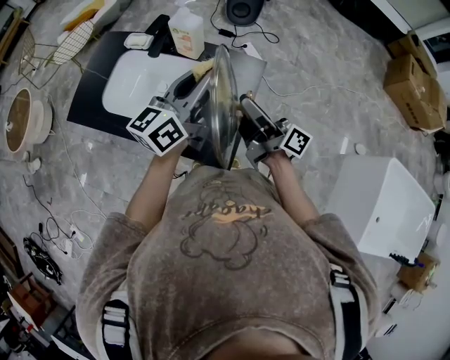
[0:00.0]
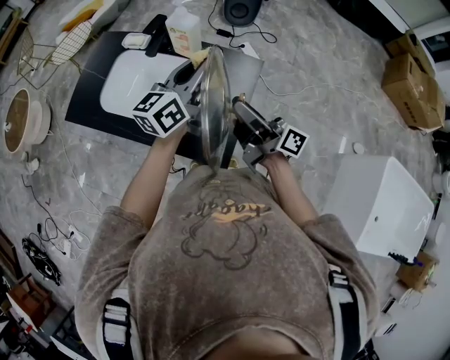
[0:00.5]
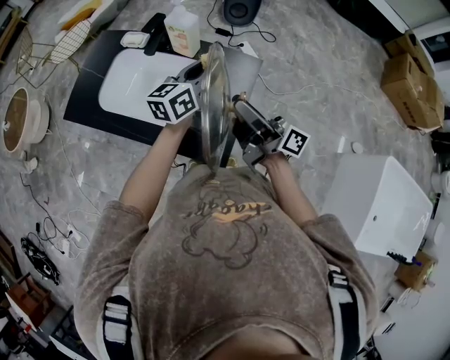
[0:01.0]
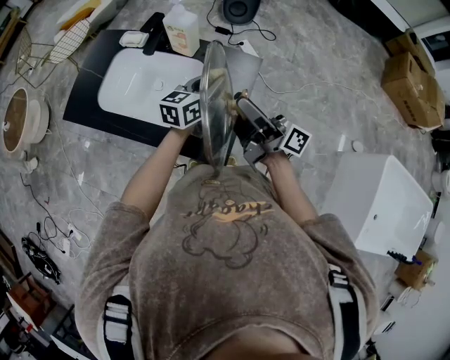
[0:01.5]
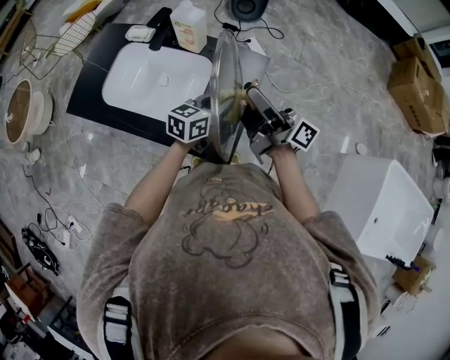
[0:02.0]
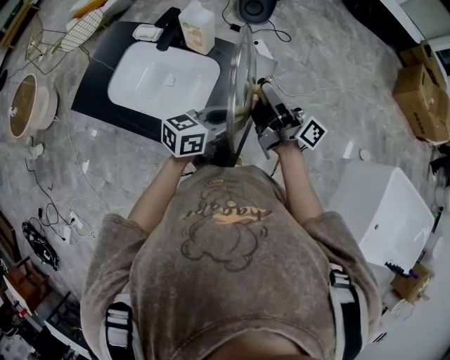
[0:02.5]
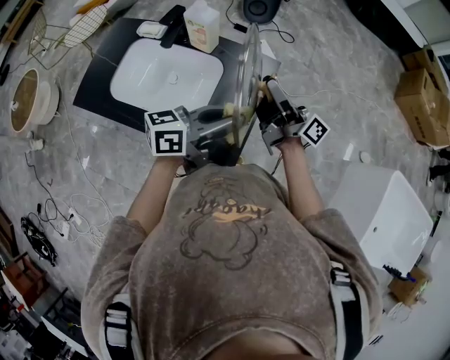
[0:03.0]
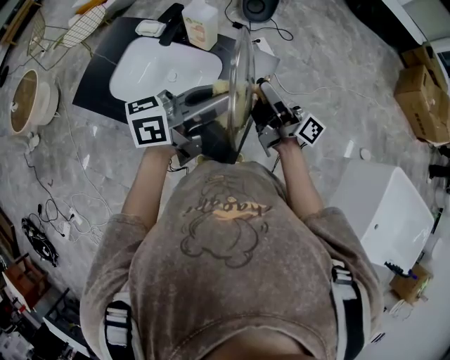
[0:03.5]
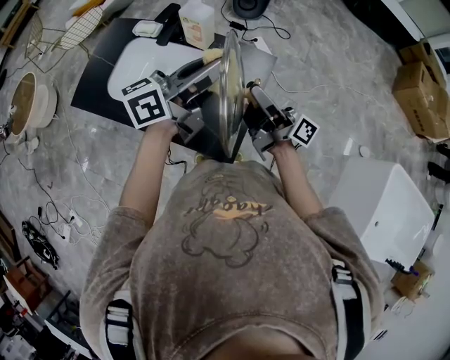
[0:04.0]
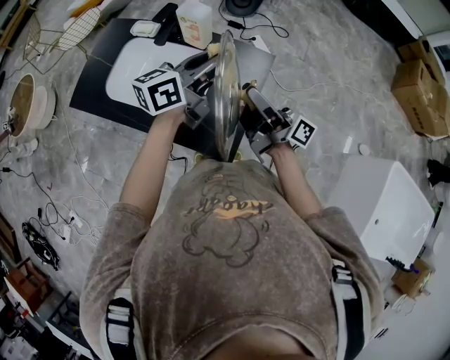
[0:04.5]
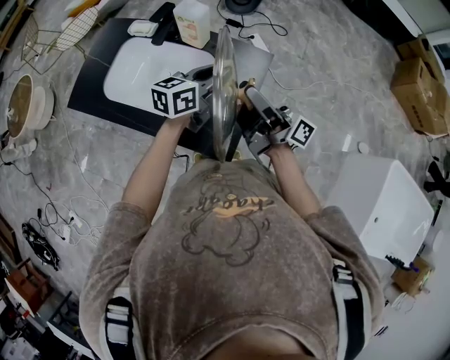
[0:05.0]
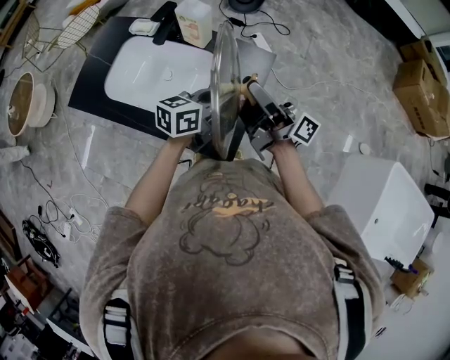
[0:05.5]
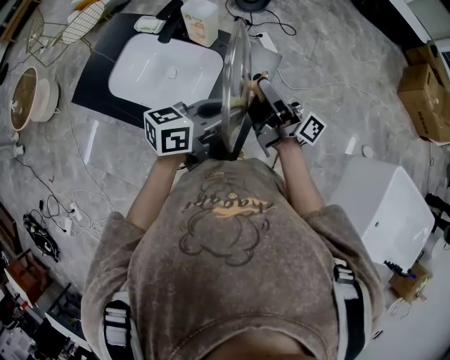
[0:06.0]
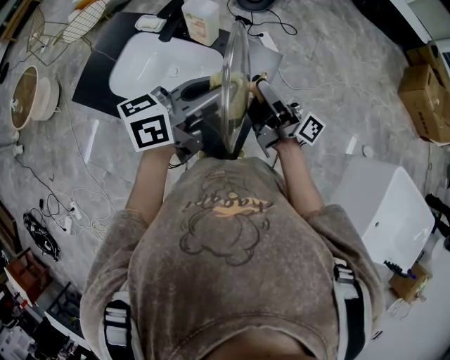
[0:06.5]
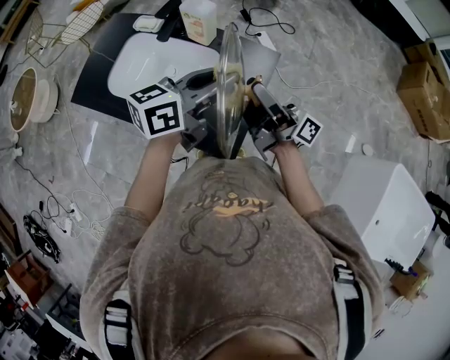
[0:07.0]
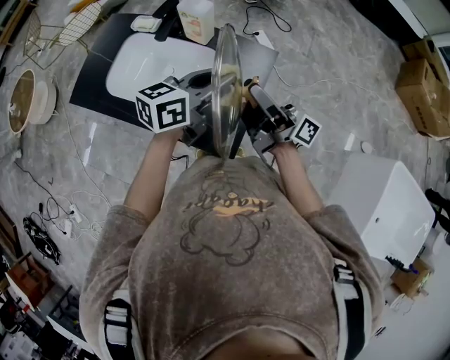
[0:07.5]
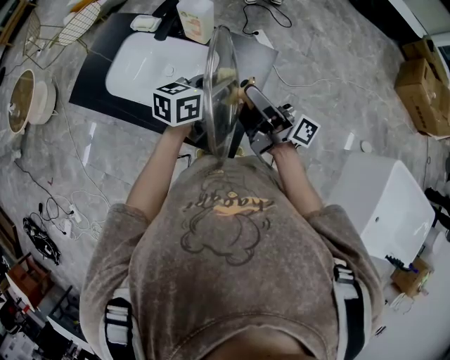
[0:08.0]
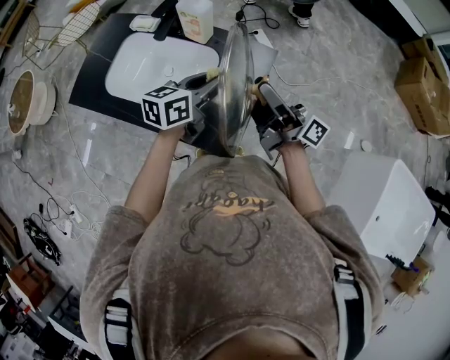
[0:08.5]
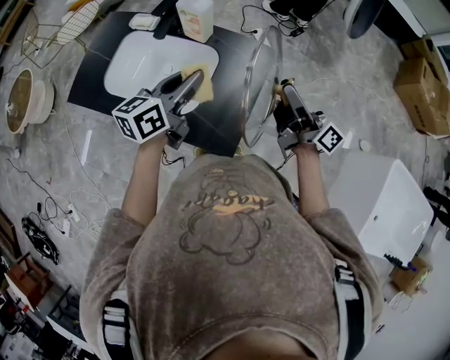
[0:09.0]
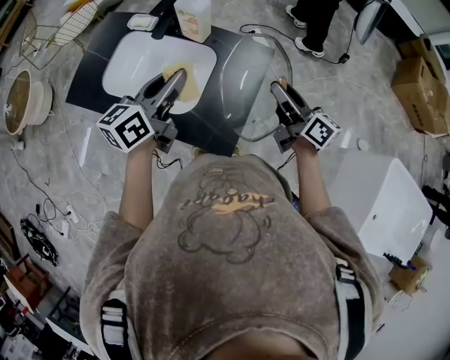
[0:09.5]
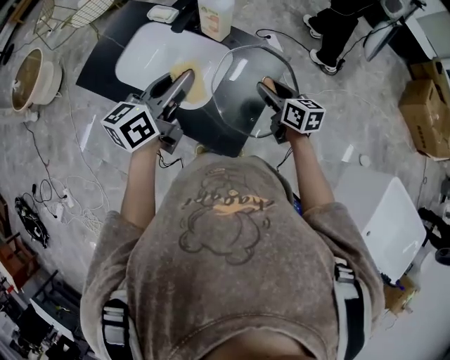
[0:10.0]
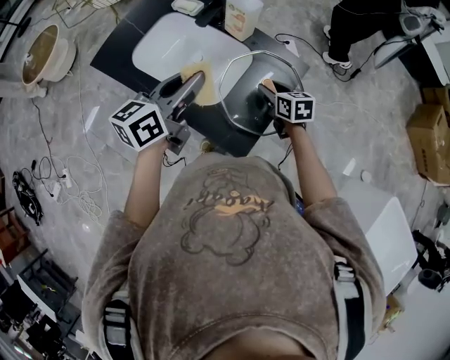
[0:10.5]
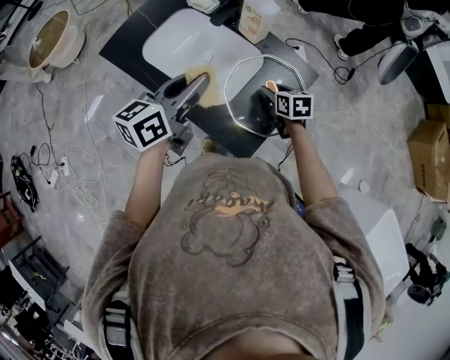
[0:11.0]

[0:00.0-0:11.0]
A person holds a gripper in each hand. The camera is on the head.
0.0 to 2.0 s: The left gripper travels downward by roughly 20 cm, and turns by roughly 30 degrees.
2.0 to 3.5 s: The left gripper heads upward, covering about 20 cm, and turns by approximately 30 degrees.
3.5 to 5.5 s: The left gripper goes some 15 cm downward, and rotates some 20 degrees.
5.5 to 7.5 s: The left gripper moves upward, some 10 cm.
7.5 to 9.0 s: The left gripper heads to the left, covering roughly 5 cm. Meanwhile the right gripper shifts approximately 10 cm to the right.
9.0 to 11.0 s: The left gripper travels to the left by approximately 10 cm, while the right gripper is displaced downward, to the left and forward by approximately 25 cm, and tips its fingers downward by roughly 60 degrees.

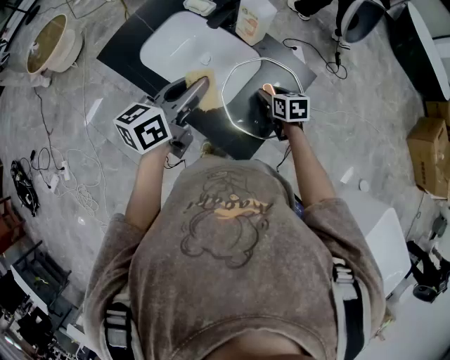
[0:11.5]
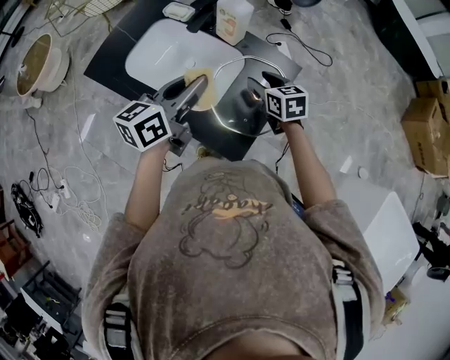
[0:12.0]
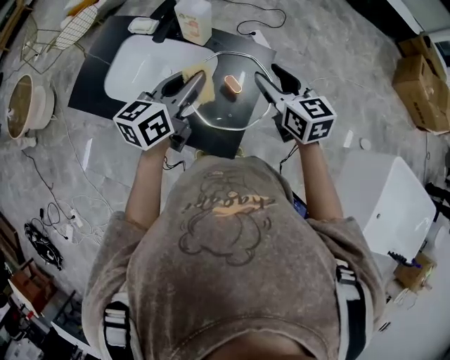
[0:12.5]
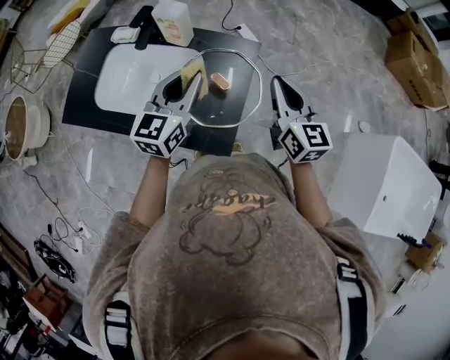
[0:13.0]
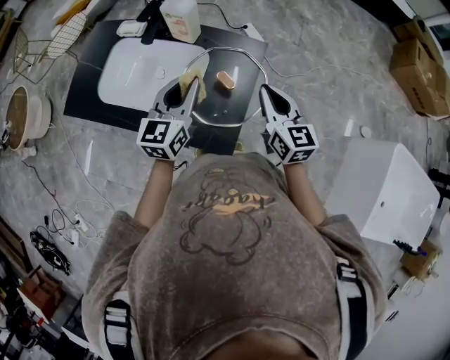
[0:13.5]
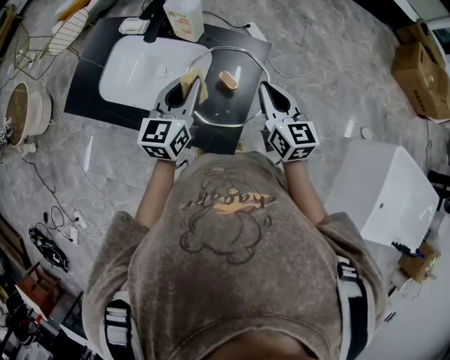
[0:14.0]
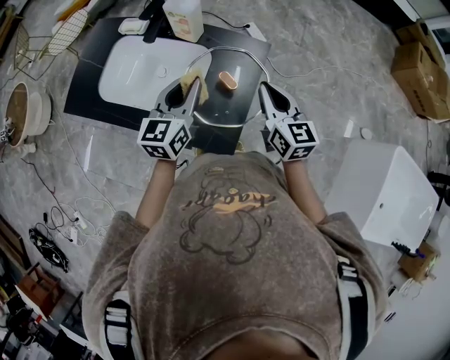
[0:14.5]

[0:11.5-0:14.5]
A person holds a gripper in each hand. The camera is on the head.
11.5 to 13.0 s: The right gripper heads upward and to the right, covering roughly 25 cm, points its fingers roughly 40 degrees further upward, and closes its fingers. Meanwhile the left gripper travels to the right by roughly 15 cm, and changes its angle by about 30 degrees.
13.0 to 14.5 s: The left gripper changes place by about 5 cm, while the right gripper moves downward, some 5 cm.

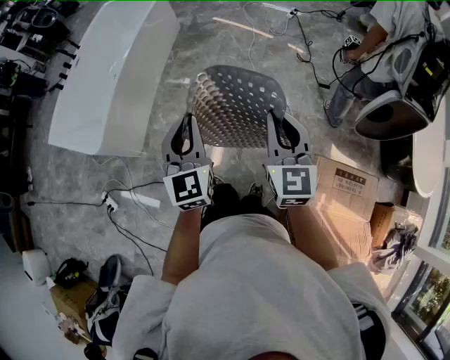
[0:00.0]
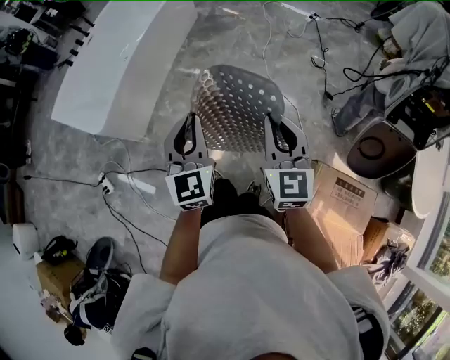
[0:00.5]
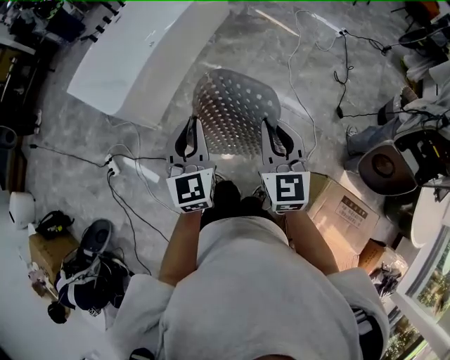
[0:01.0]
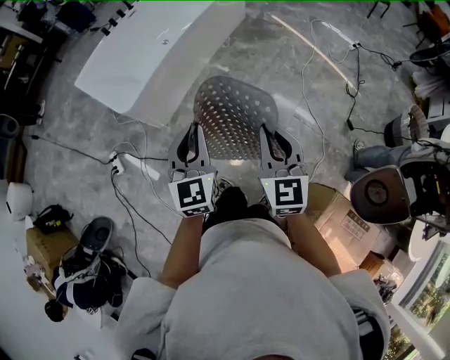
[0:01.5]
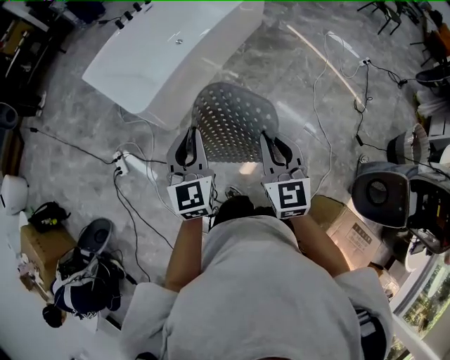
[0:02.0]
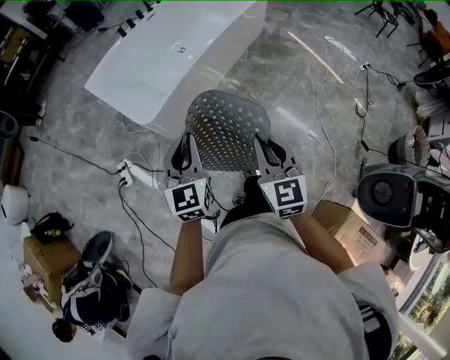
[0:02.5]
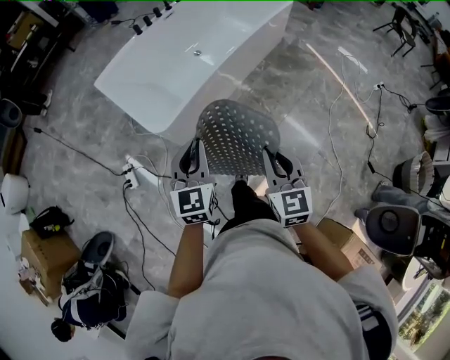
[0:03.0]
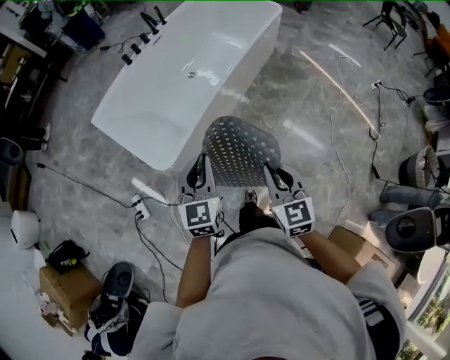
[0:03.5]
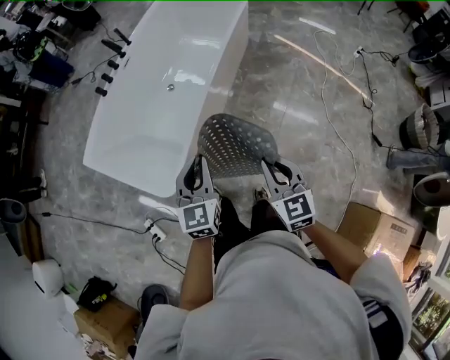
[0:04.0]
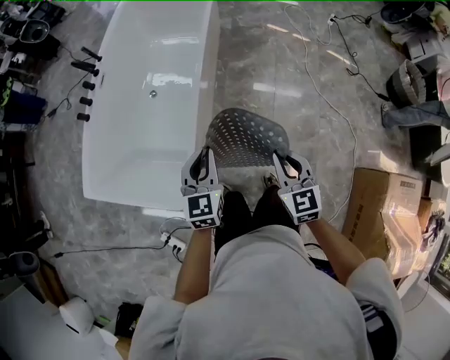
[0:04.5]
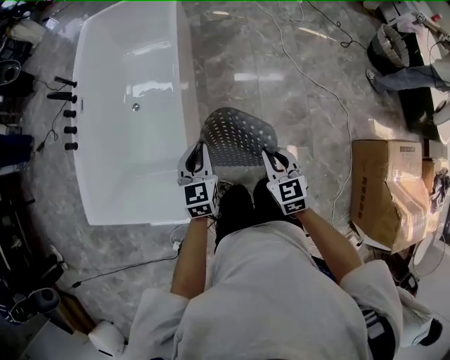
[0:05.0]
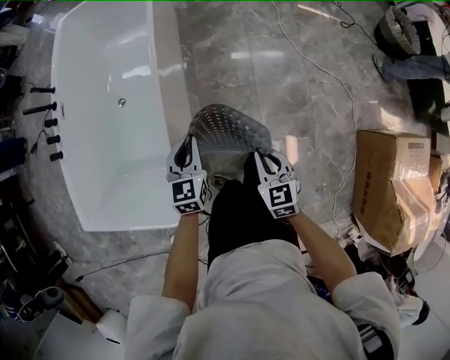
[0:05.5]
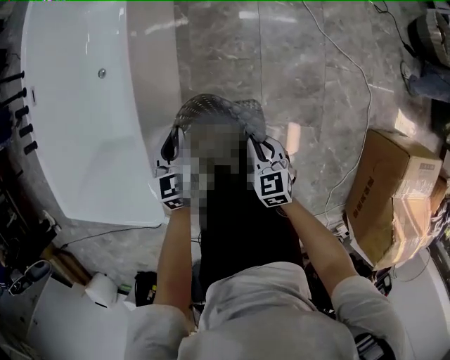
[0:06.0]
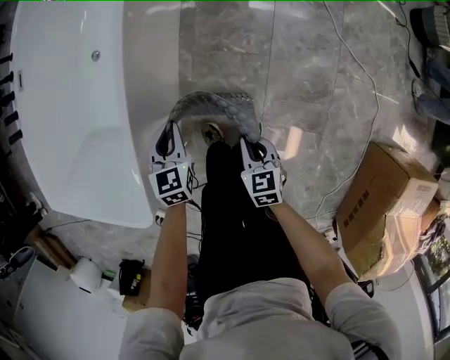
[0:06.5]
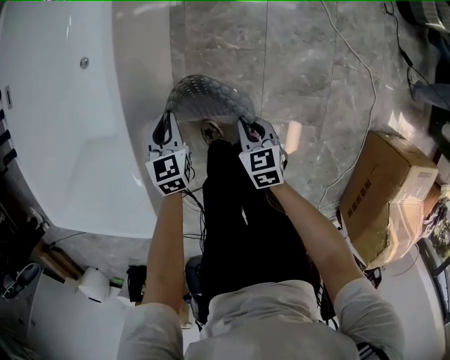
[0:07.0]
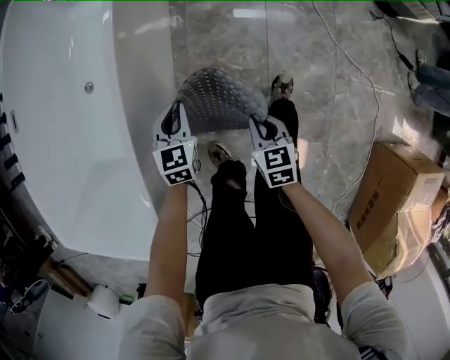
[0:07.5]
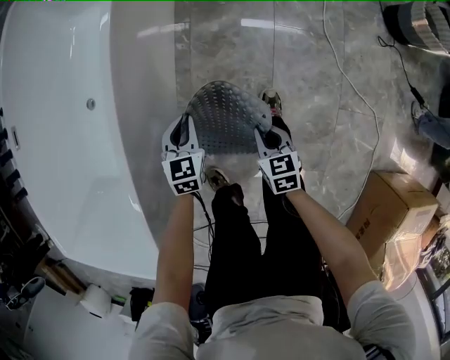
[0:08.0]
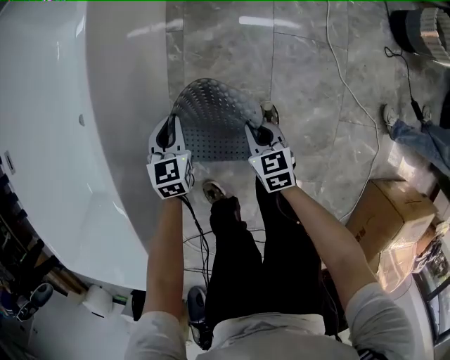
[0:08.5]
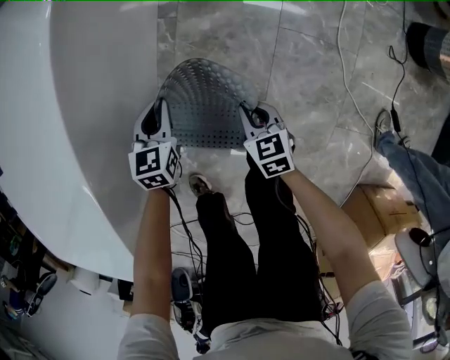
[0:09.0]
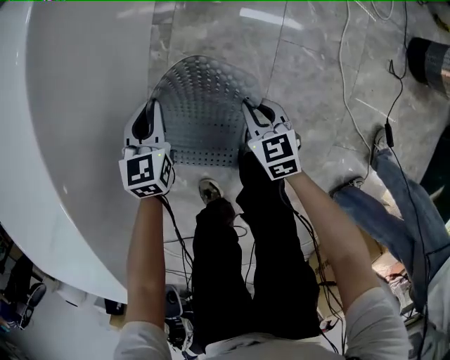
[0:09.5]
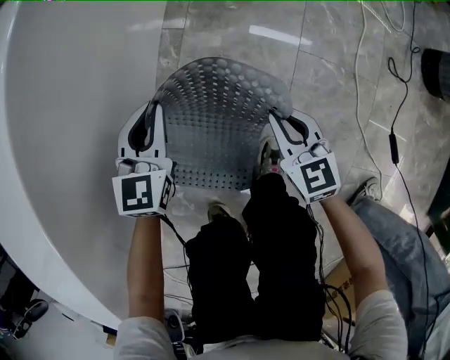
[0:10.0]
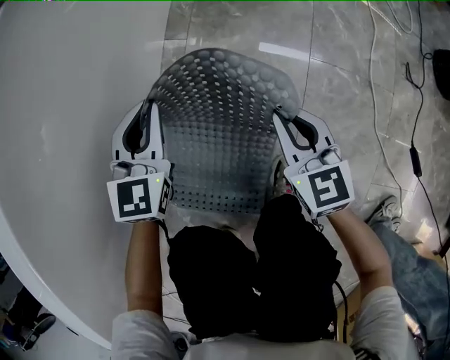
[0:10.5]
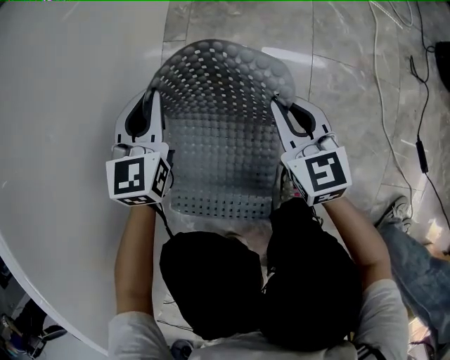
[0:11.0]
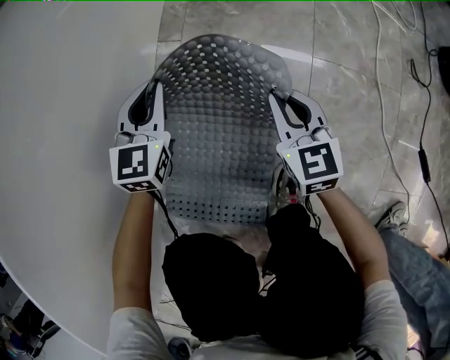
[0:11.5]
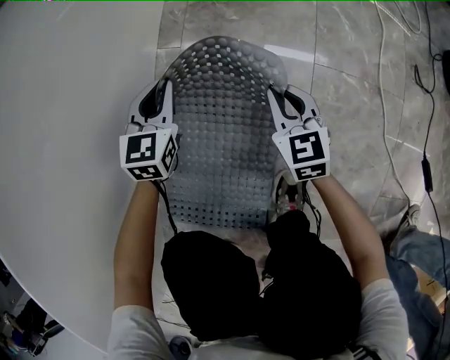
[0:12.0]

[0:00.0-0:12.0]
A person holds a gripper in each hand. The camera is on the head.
0.0 to 2.0 s: Both grippers travel together to the left, roughly 30 cm. The right gripper turns by some 30 degrees; the left gripper rotates about 20 degrees.
2.0 to 4.0 s: The two grippers go approximately 30 cm forward.
4.0 to 6.0 s: The two grippers go roughly 35 cm downward. The right gripper turns by about 30 degrees. Meanwhile the left gripper rotates roughly 30 degrees.
6.0 to 8.0 s: Both grippers travel together forward and downward, about 30 cm.
8.0 to 10.0 s: Both grippers travel together forward and downward, about 25 cm. The right gripper rotates roughly 20 degrees.
10.0 to 12.0 s: Both grippers move downward and forward, some 15 cm.

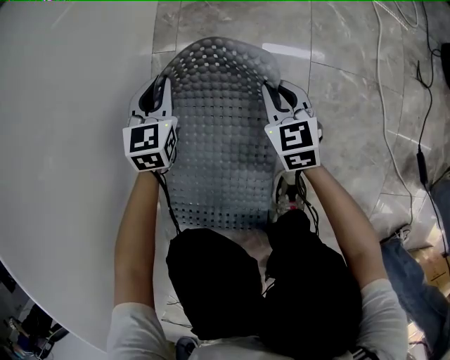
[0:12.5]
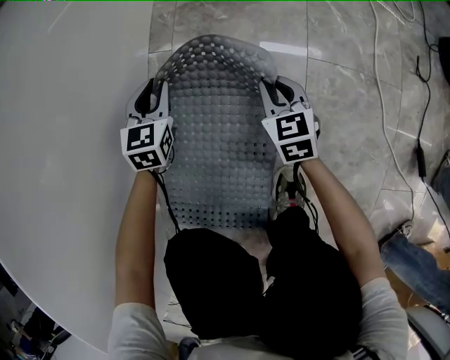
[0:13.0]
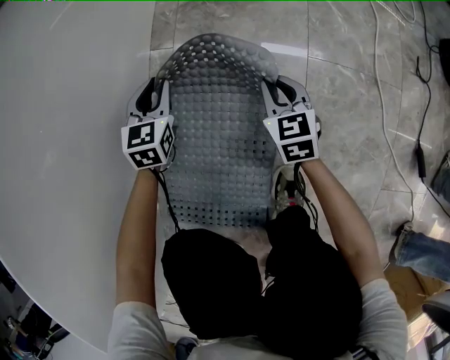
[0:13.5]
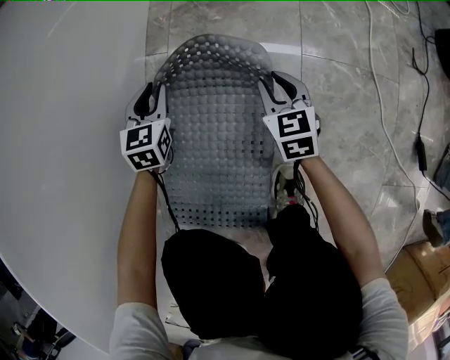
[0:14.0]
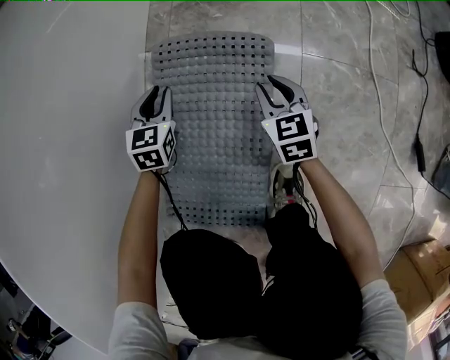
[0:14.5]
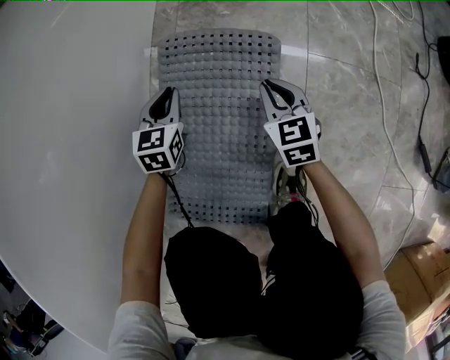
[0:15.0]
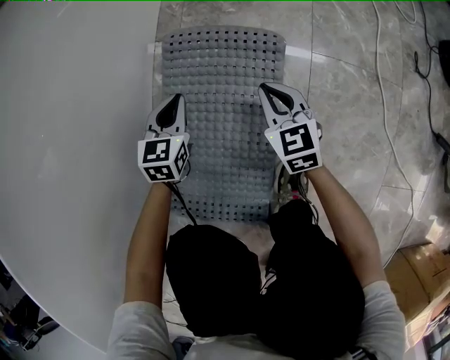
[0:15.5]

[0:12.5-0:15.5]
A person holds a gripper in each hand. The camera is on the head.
12.5 to 14.0 s: There are only small adjustments of the grippers.
14.0 to 15.5 s: The left gripper shifts approximately 10 cm backward. The right gripper ends up some 5 cm from where it was, and closes its fingers.
